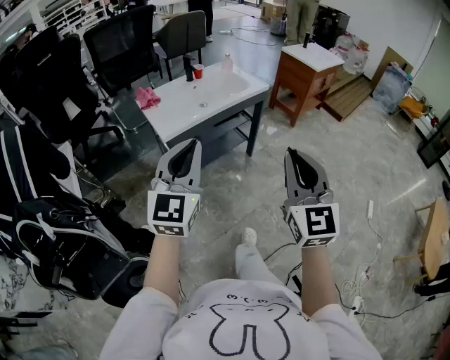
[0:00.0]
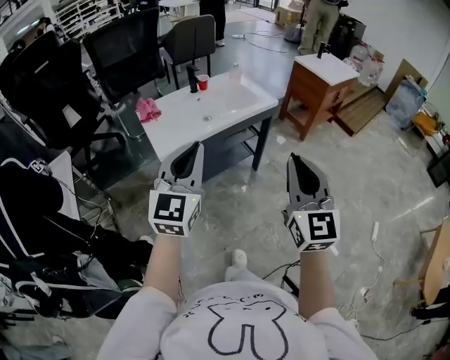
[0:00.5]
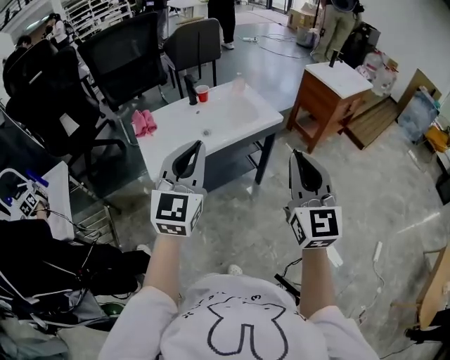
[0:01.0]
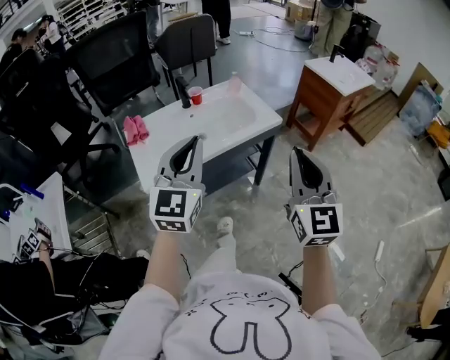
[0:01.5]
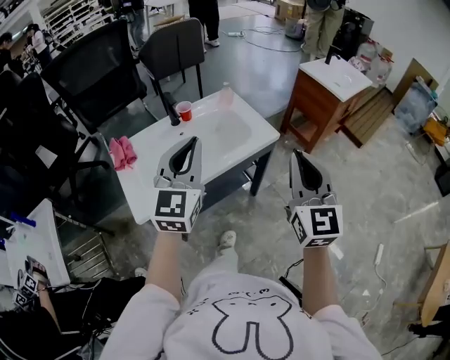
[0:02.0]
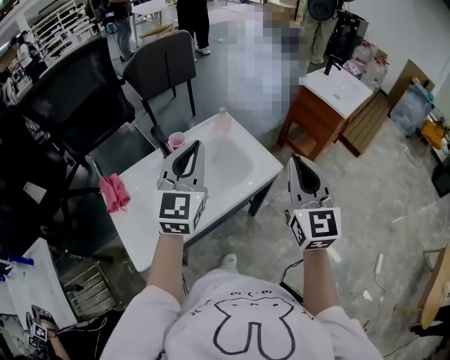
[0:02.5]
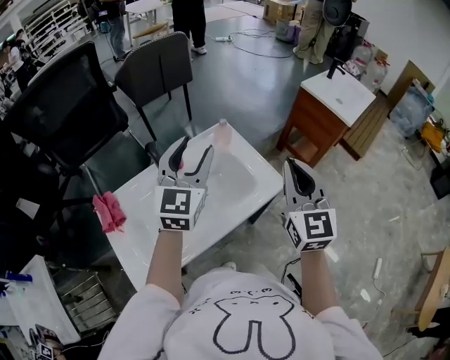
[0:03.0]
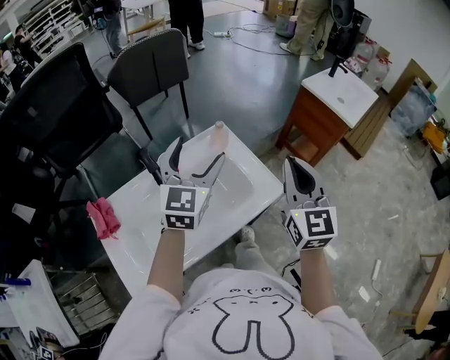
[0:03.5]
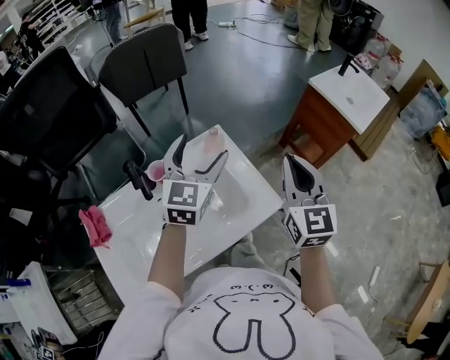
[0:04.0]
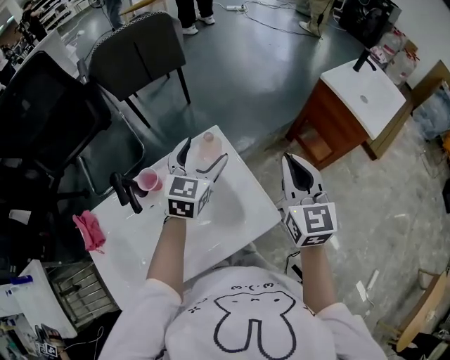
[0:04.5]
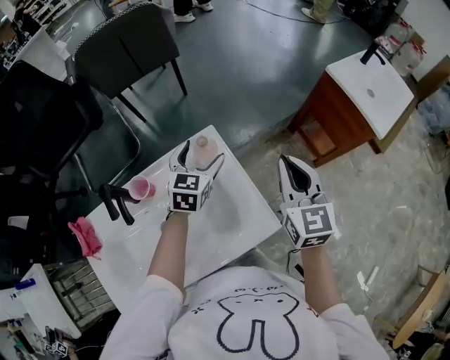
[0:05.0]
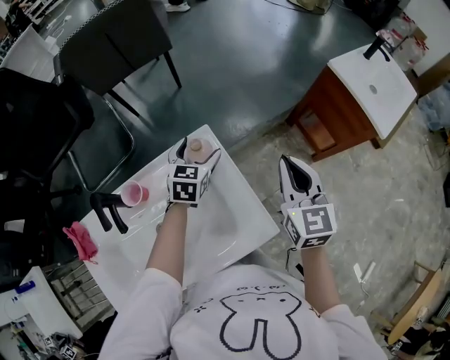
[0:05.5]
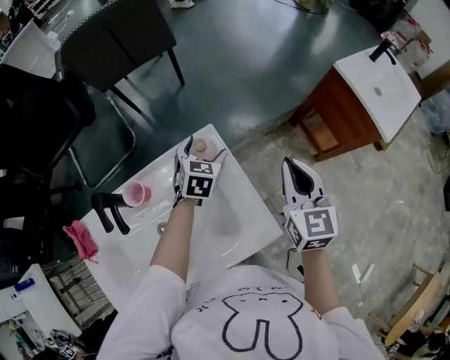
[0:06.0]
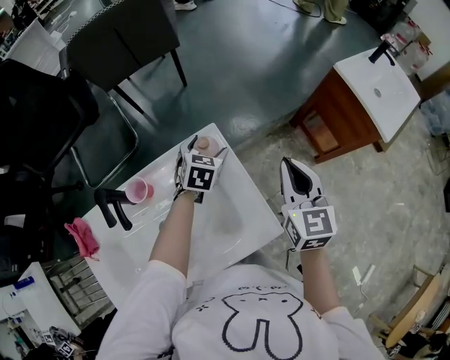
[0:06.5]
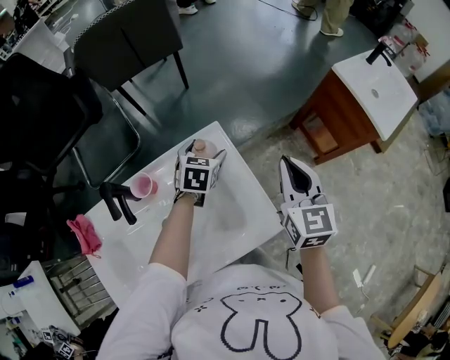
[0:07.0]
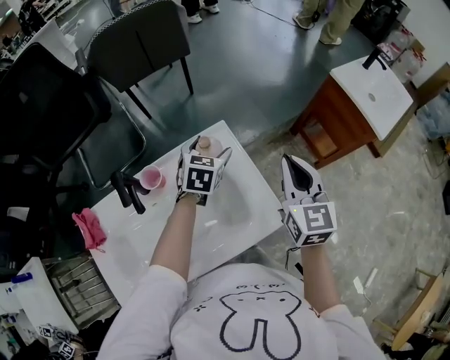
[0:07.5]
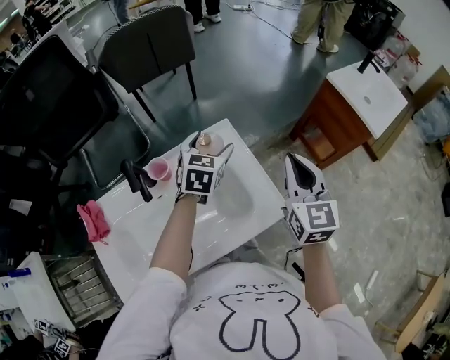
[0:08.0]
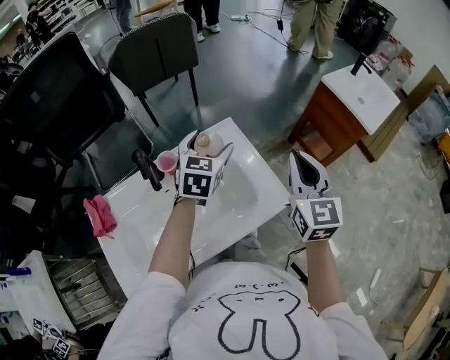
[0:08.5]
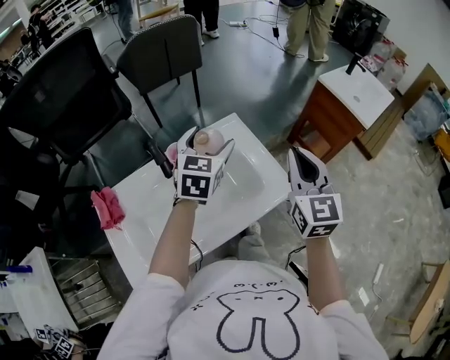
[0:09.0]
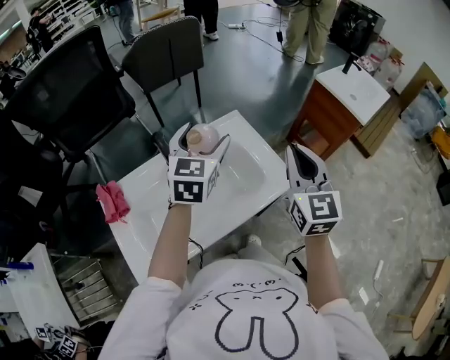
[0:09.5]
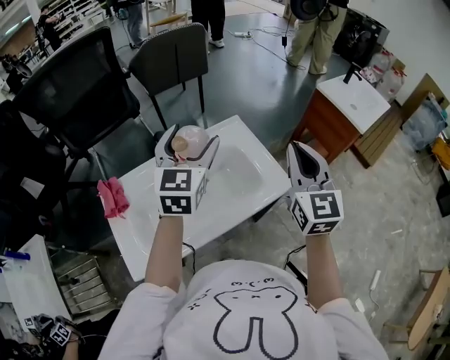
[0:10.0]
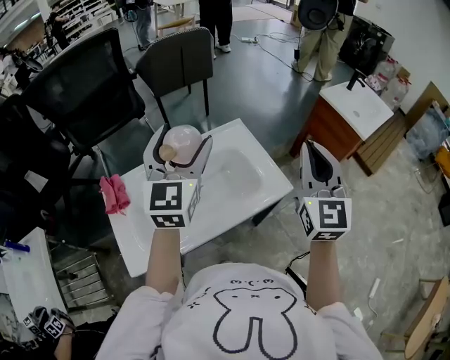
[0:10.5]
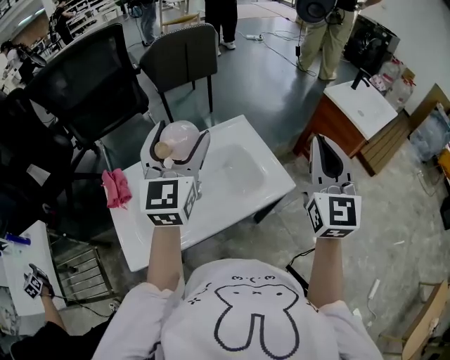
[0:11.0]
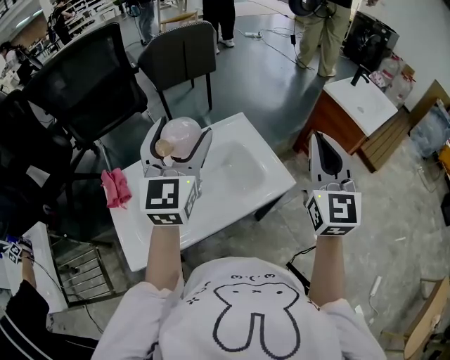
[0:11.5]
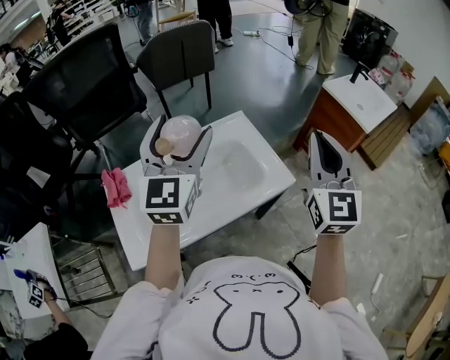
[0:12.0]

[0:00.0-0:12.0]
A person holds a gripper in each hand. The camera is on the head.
0:00.0 to 0:02.0: The two grippers travel together, forward, some 40 cm.
0:02.0 to 0:04.0: Both grippers move forward, approximately 35 cm. The left gripper opens.
0:04.0 to 0:06.0: The left gripper travels downward and forward by about 30 cm, and points its fingers approximately 30 degrees further downward; the right gripper travels forward and downward by roughly 20 cm.
0:06.0 to 0:08.0: The left gripper goes roughly 15 cm upward and backward. Meanwhile the right gripper travels backward and upward by roughly 10 cm.
0:08.0 to 0:10.0: The right gripper heads backward and upward, covering some 20 cm. The left gripper is displaced upward, backward and to the left by about 30 cm, and changes its angle by approximately 30 degrees.
0:10.0 to 0:12.0: The left gripper is displaced upward and backward by approximately 10 cm. The right gripper moves roughly 5 cm.

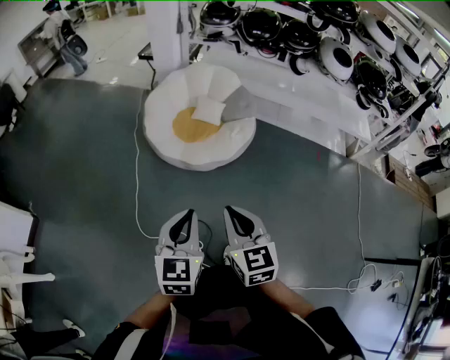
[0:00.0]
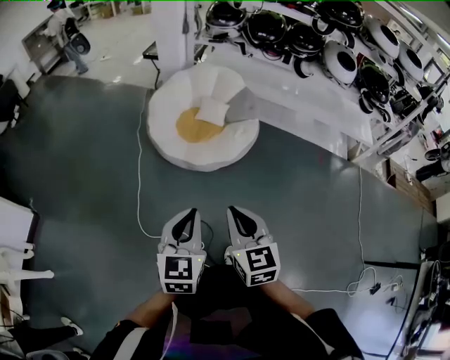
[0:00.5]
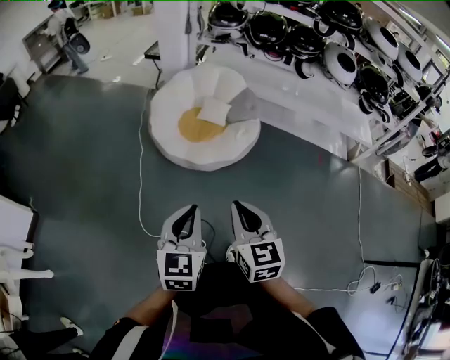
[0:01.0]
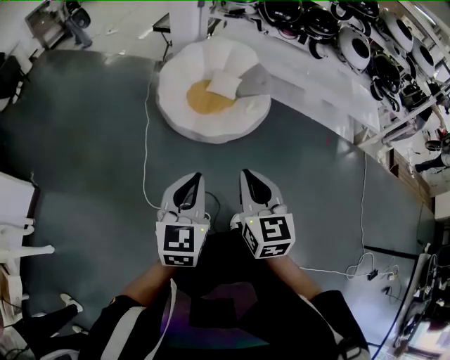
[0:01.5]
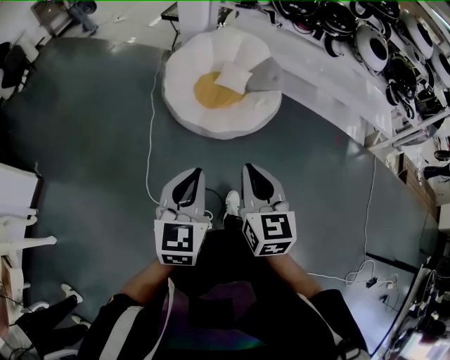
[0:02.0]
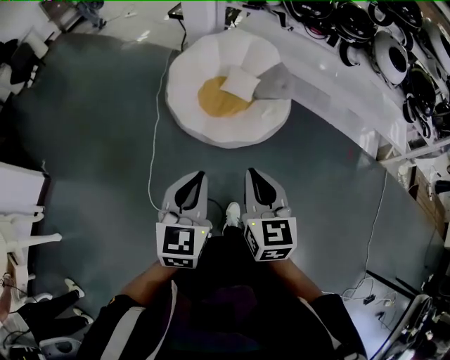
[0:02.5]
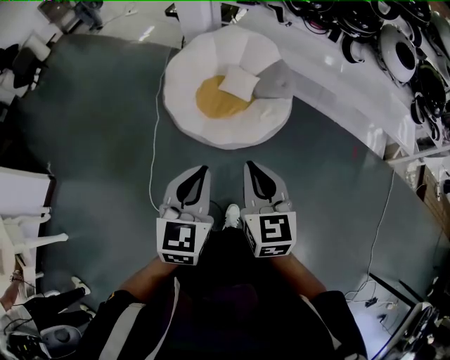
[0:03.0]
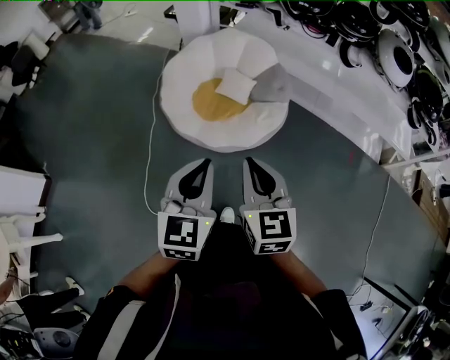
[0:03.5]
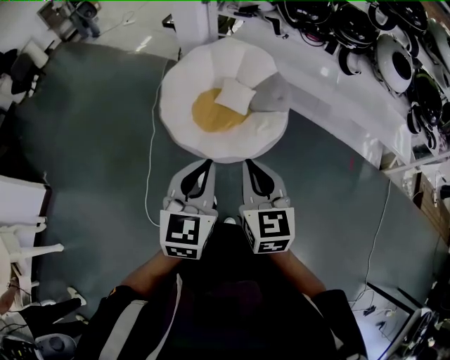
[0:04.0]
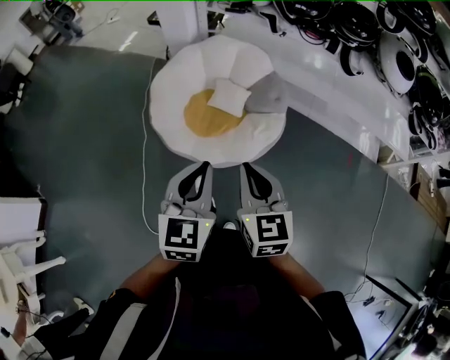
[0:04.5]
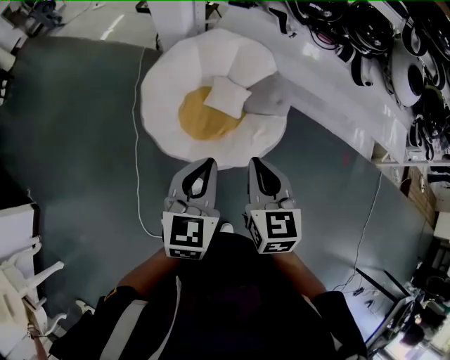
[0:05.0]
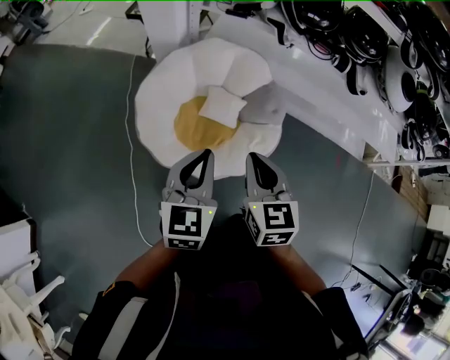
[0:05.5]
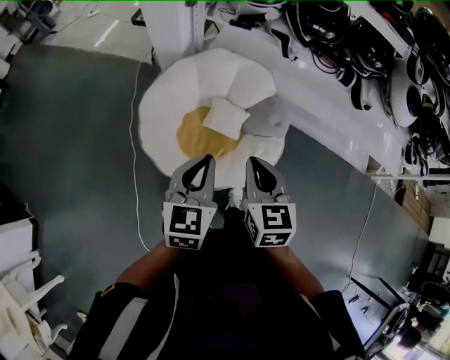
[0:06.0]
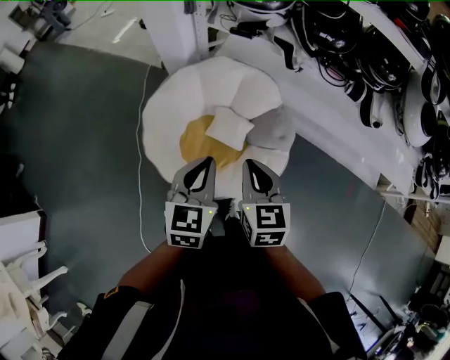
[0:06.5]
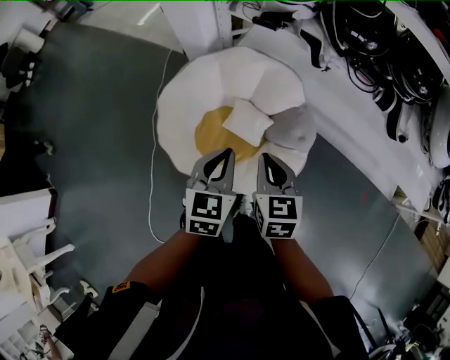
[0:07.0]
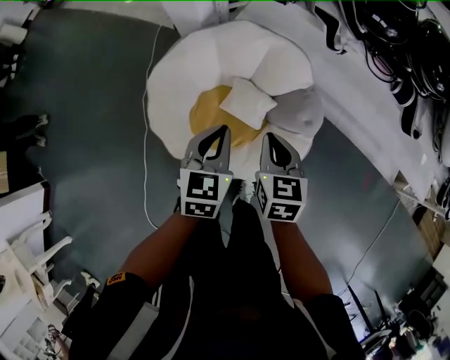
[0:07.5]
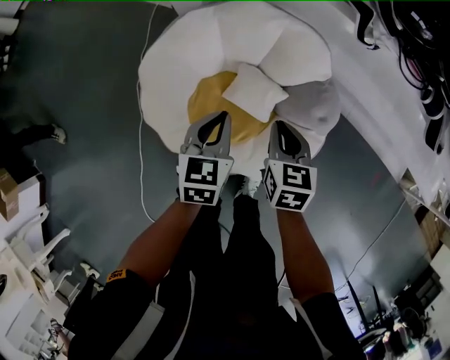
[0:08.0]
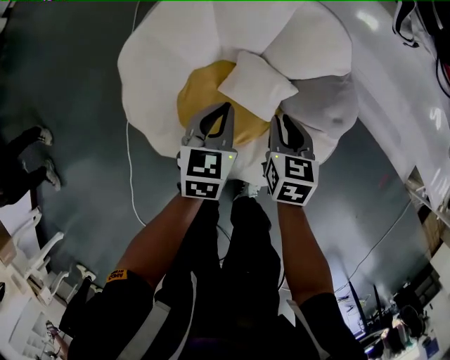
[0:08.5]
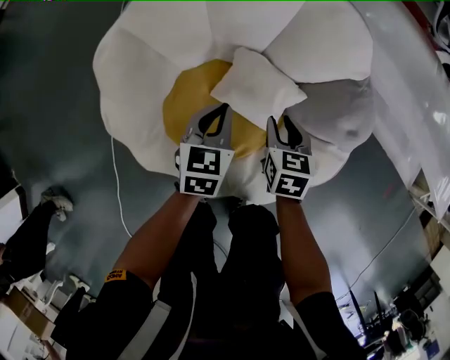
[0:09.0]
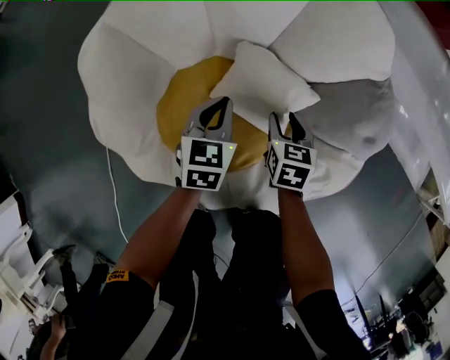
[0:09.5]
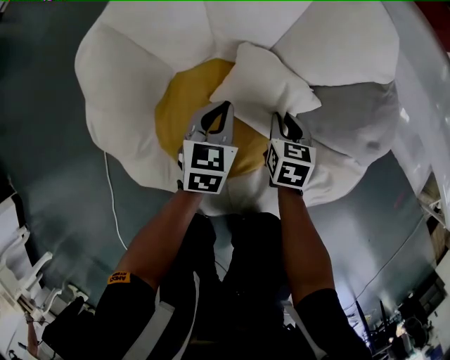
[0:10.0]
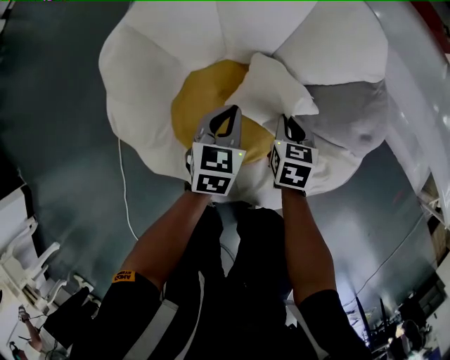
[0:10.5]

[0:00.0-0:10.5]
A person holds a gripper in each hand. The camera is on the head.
0:00.0 to 0:02.0: The right gripper moves forward, some 5 cm. Meanwhile the left gripper heads to the left, covering some 5 cm.
0:02.0 to 0:04.0: Both grippers move forward and to the right, roughly 25 cm.
0:04.0 to 0:06.5: The grippers both shift forward by some 40 cm.
0:06.5 to 0:08.5: Both grippers move downward and forward, about 40 cm.
0:08.5 to 0:10.5: Both grippers travel together downward, some 20 cm. The right gripper opens and closes again.

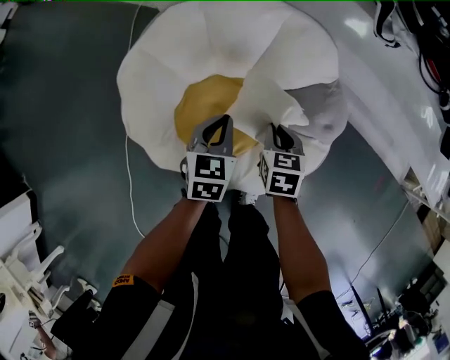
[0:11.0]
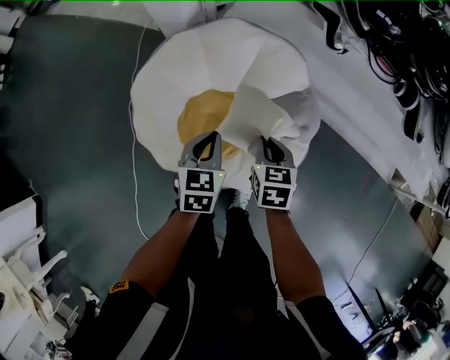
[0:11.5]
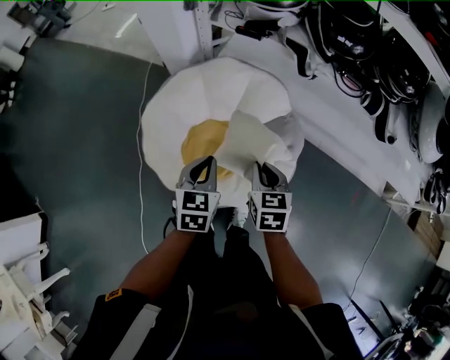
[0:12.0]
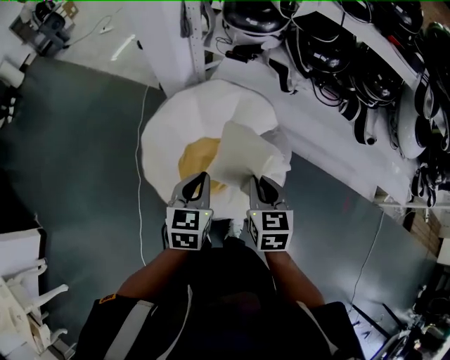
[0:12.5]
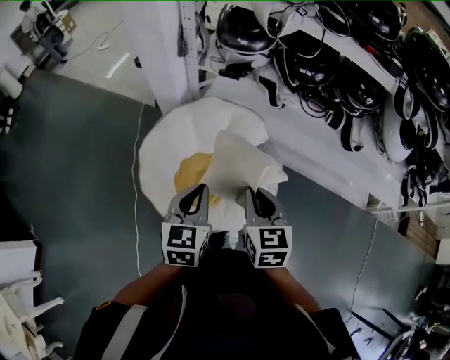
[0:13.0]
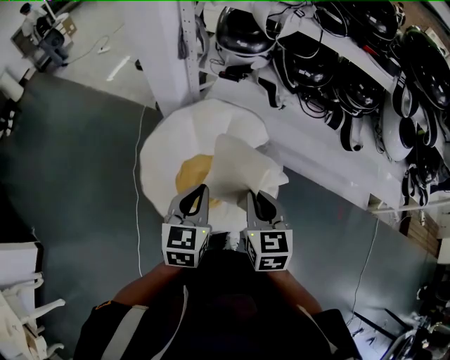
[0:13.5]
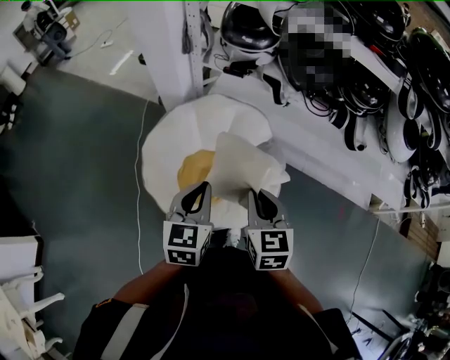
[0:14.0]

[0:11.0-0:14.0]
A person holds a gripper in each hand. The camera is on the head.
0:11.0 to 0:12.5: The grippers both shift upward by roughly 35 cm.
0:12.5 to 0:14.0: The grippers both shift upward by some 5 cm.

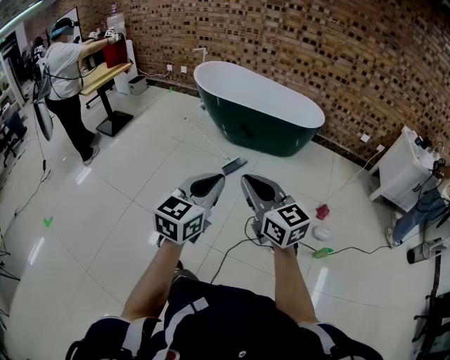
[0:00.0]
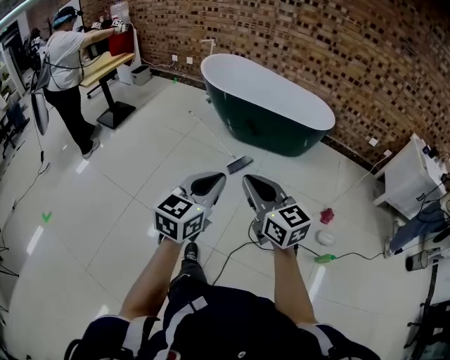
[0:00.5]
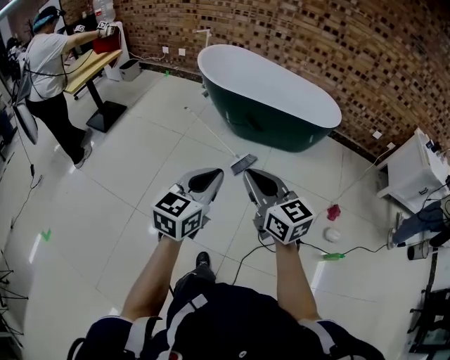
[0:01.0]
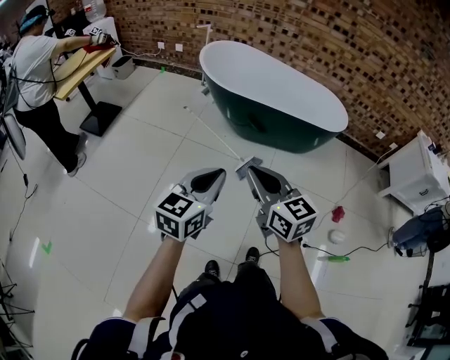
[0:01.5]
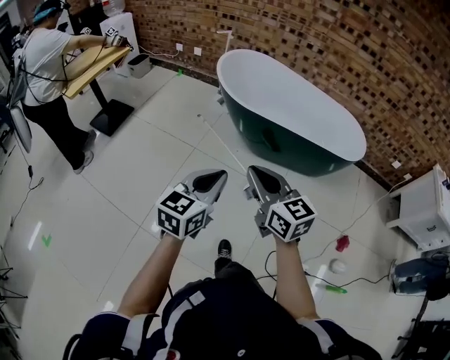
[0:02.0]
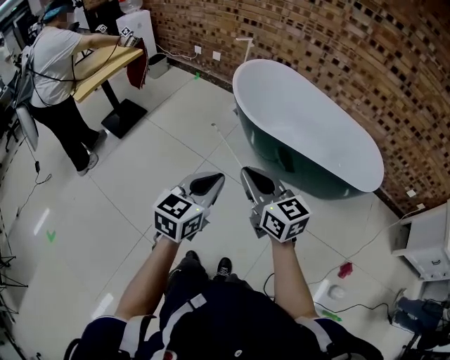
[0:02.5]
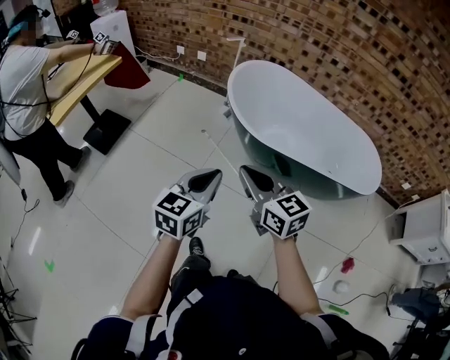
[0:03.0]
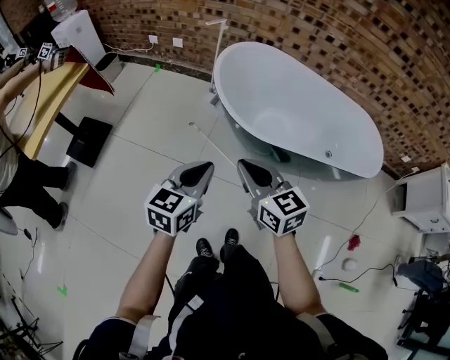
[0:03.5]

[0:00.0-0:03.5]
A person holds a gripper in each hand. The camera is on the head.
0:00.0 to 0:02.0: The two grippers travel together, forward and to the left, some 50 cm.
0:02.0 to 0:03.5: The two grippers go some 40 cm forward.
